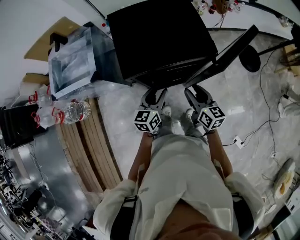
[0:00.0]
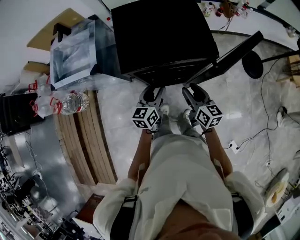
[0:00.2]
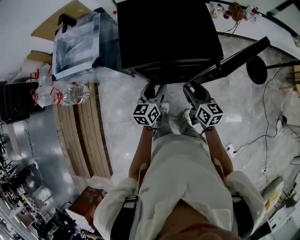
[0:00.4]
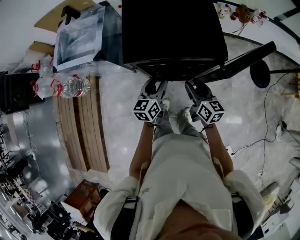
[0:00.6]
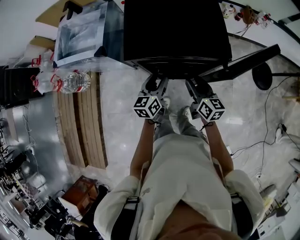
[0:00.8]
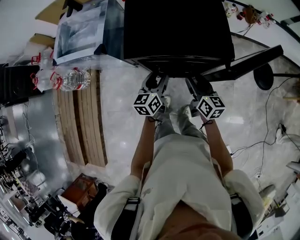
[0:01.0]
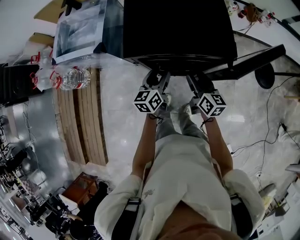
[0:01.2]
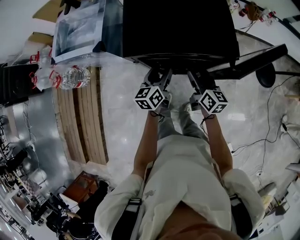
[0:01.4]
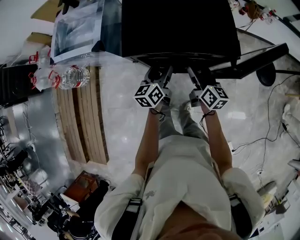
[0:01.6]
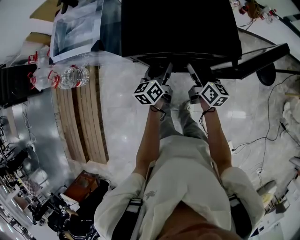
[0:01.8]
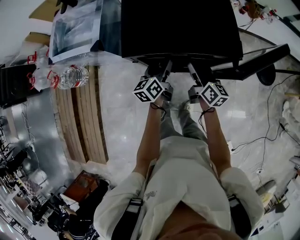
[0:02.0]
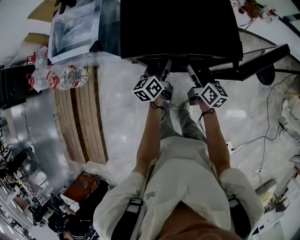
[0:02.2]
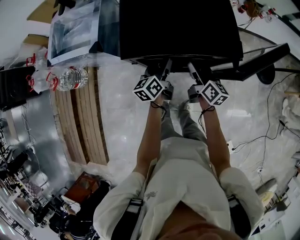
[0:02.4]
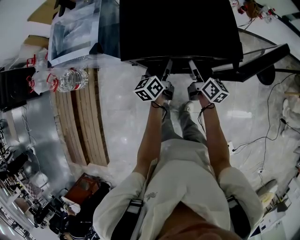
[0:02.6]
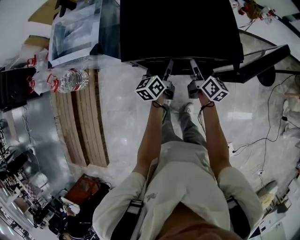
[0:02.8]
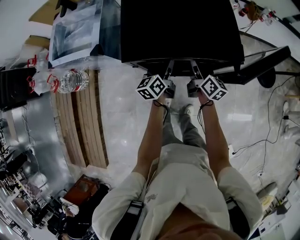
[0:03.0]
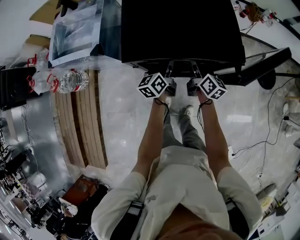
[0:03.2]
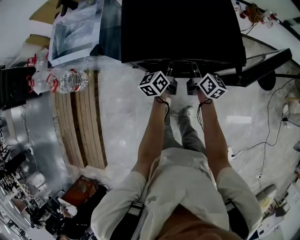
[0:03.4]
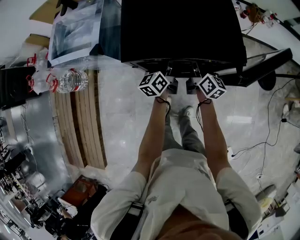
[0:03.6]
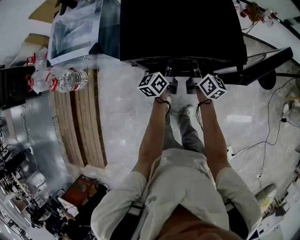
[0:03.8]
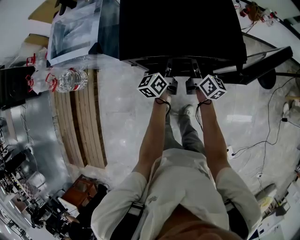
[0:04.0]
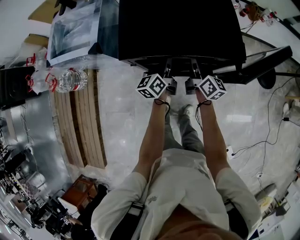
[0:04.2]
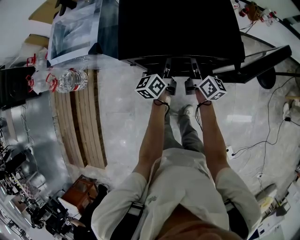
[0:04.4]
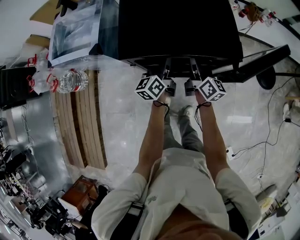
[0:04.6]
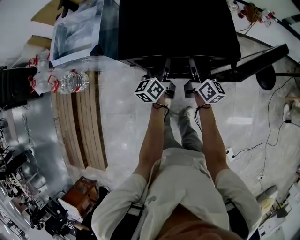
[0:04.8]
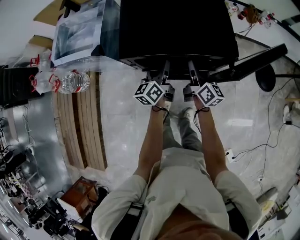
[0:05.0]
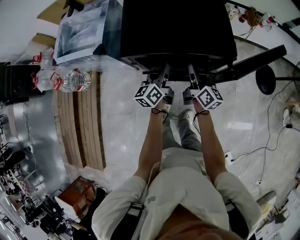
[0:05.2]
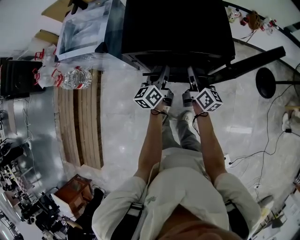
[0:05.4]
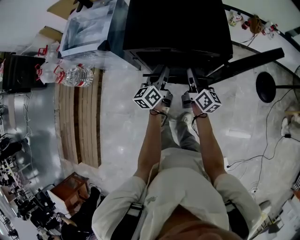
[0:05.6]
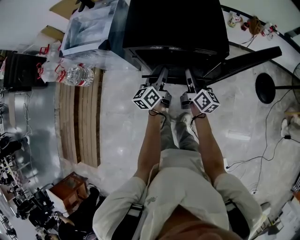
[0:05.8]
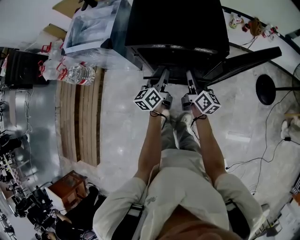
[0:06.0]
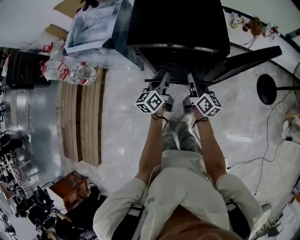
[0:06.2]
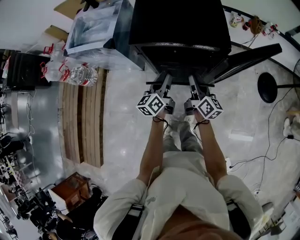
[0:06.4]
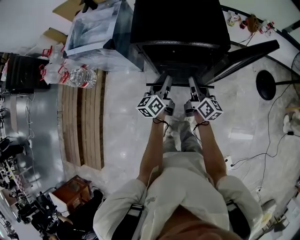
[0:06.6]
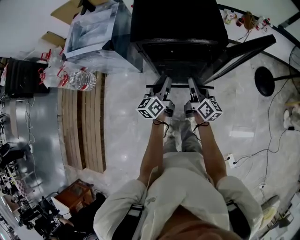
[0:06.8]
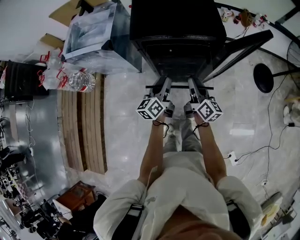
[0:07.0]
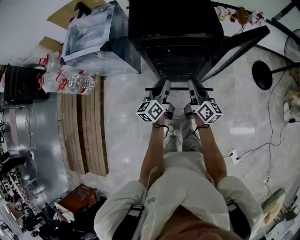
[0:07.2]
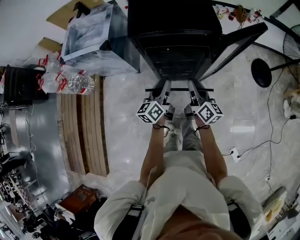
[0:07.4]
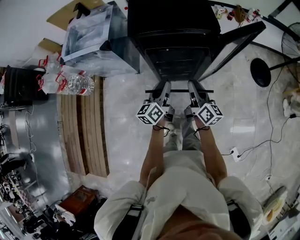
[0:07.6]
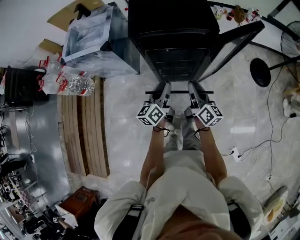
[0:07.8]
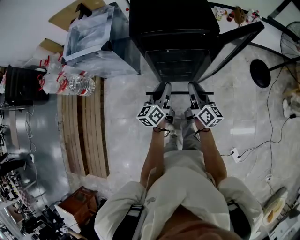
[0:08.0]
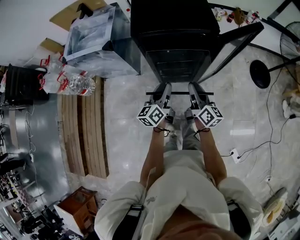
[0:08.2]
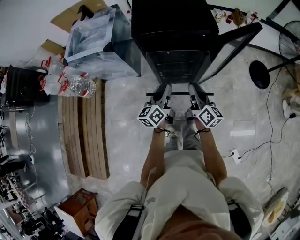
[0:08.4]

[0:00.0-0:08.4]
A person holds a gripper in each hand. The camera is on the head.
0:00.0 to 0:01.4: The left gripper moves downward, some 5 cm, and turns by roughly 20 degrees; the right gripper is displaced forward and downward by approximately 10 cm.
0:01.4 to 0:02.8: Both grippers move forward, roughly 5 cm.
0:02.8 to 0:04.2: The left gripper closes; the right gripper closes.
0:04.2 to 0:05.6: Both grippers travel together backward, roughly 10 cm.
0:05.6 to 0:07.0: The grippers both shift backward by some 10 cm.
0:07.0 to 0:08.4: The grippers both shift backward by about 5 cm.

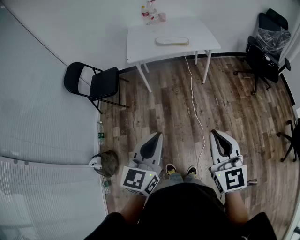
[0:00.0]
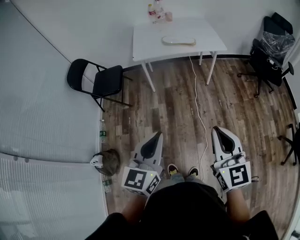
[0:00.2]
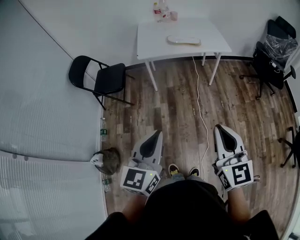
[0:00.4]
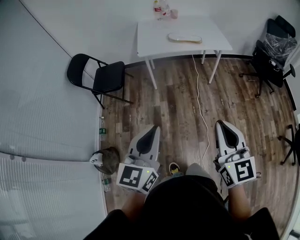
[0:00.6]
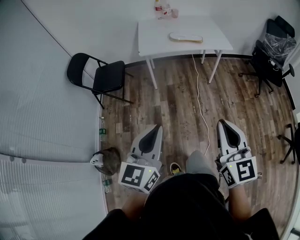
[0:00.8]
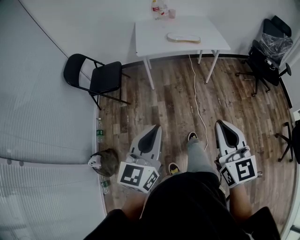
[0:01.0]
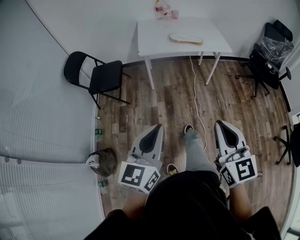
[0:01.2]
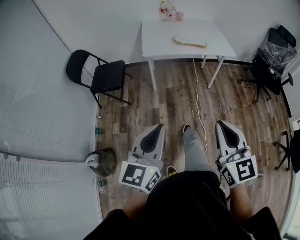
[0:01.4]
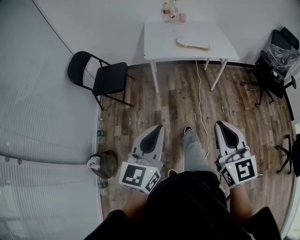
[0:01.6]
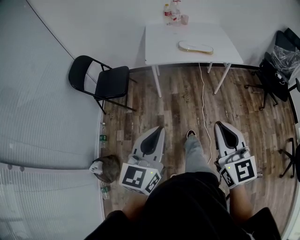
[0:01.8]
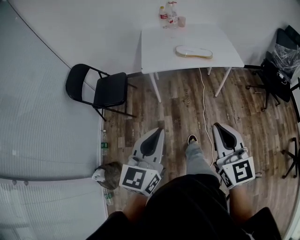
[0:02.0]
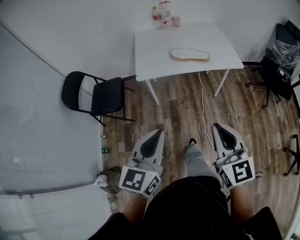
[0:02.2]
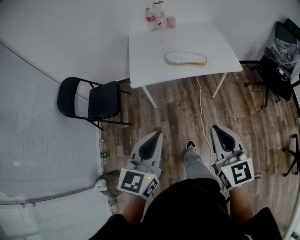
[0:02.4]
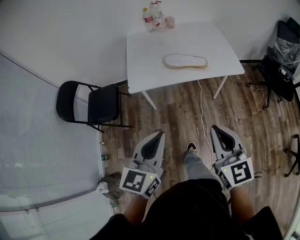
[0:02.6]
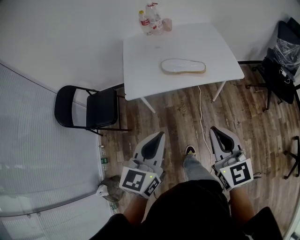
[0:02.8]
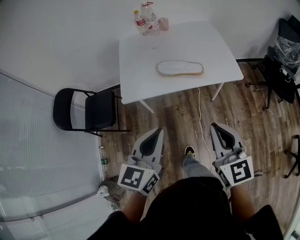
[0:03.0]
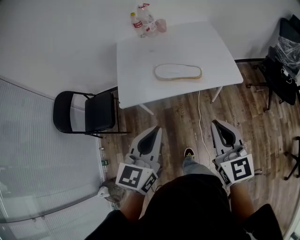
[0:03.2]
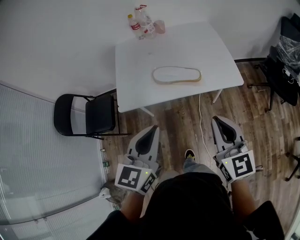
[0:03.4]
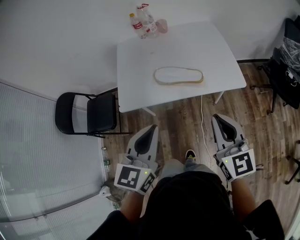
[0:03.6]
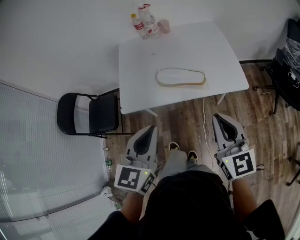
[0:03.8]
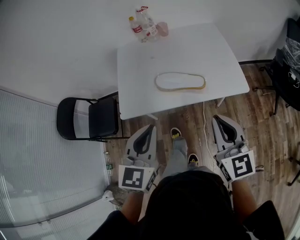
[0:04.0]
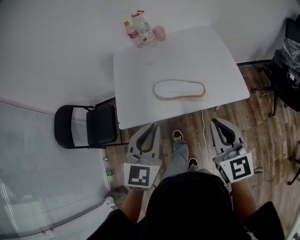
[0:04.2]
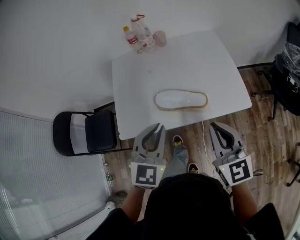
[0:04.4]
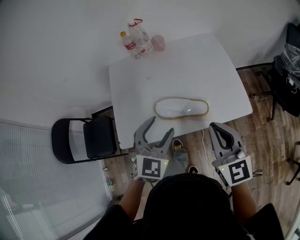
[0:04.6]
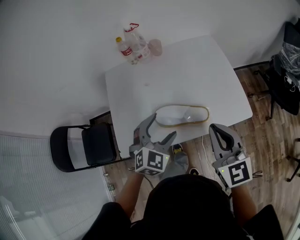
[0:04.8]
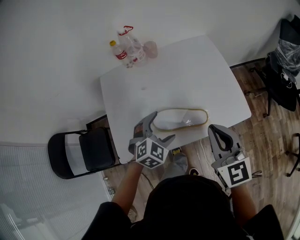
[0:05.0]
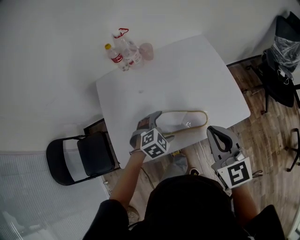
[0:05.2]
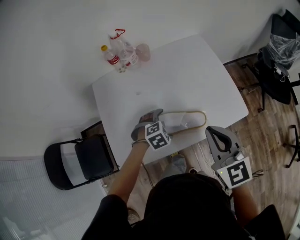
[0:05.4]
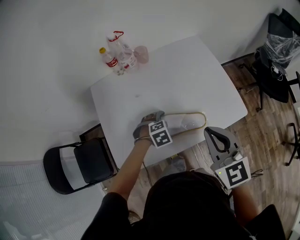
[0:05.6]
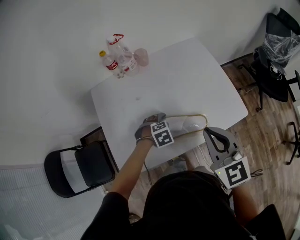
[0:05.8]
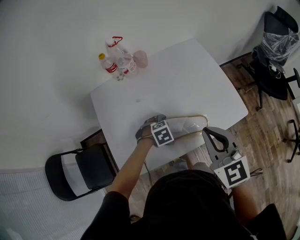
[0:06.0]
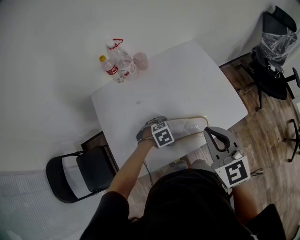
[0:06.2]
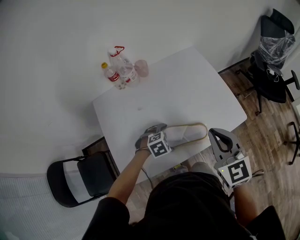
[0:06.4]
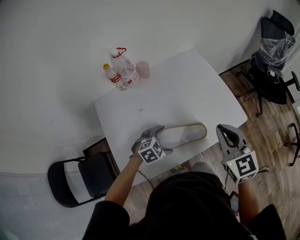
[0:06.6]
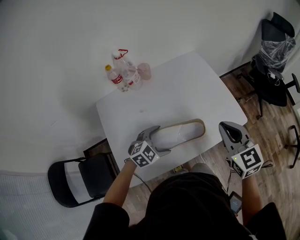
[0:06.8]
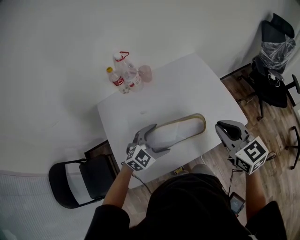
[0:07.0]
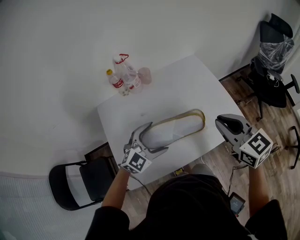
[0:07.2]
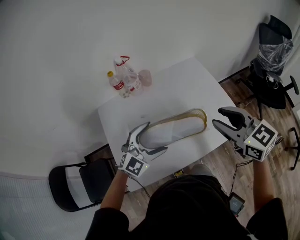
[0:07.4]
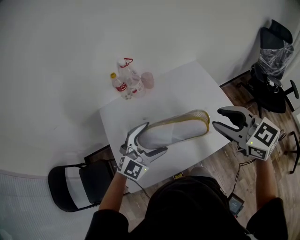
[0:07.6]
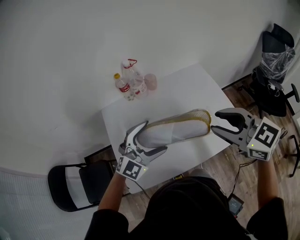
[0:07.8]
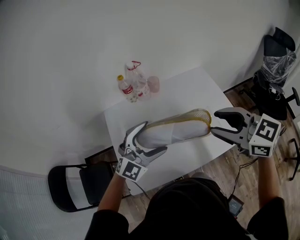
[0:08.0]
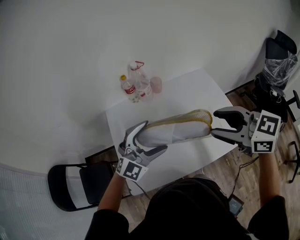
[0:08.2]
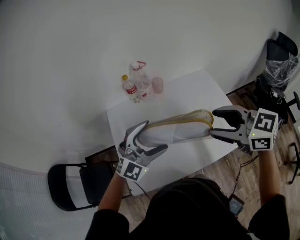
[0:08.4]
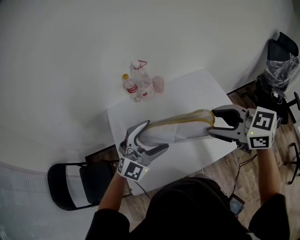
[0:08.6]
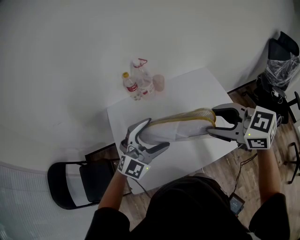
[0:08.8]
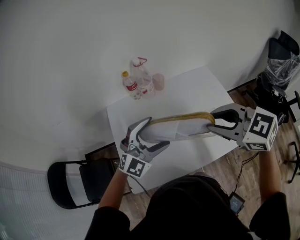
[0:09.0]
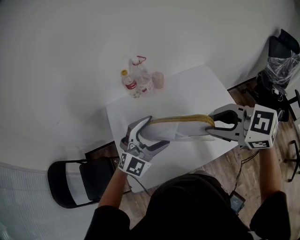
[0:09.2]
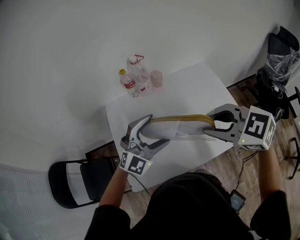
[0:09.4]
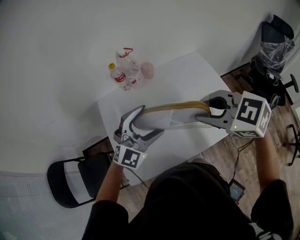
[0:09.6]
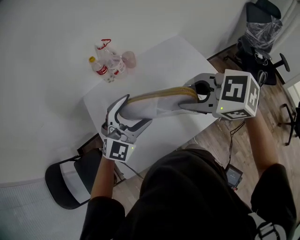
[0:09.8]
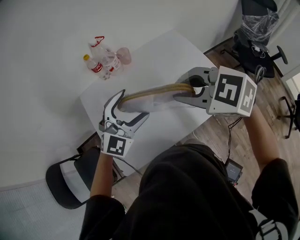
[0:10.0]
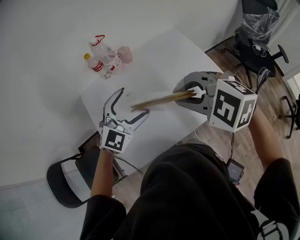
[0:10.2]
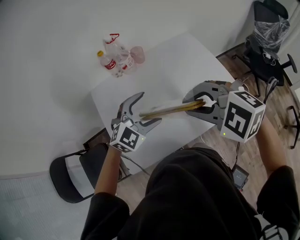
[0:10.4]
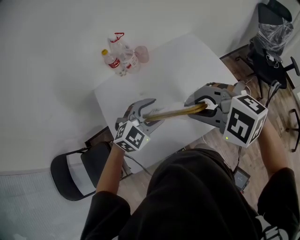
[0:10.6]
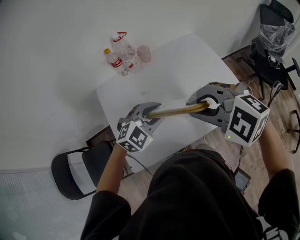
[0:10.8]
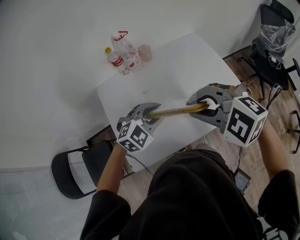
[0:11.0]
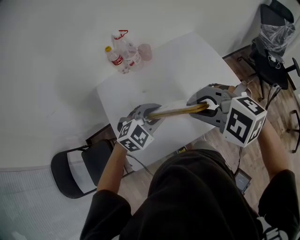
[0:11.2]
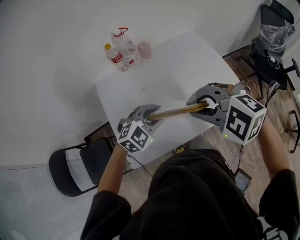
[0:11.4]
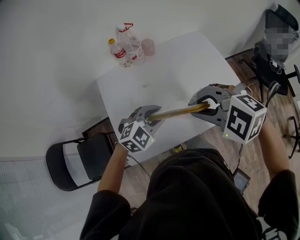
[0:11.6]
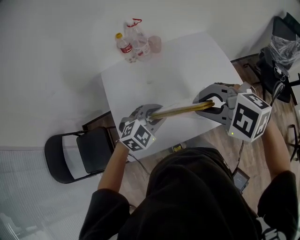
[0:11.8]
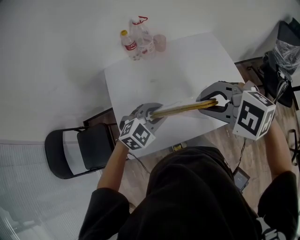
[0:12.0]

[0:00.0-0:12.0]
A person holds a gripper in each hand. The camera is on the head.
0:00.0 to 0:01.6: Both grippers travel together to the left and forward, approximately 15 cm.
0:01.6 to 0:03.0: Both grippers are carried forward, approximately 40 cm.
0:03.0 to 0:04.4: The two grippers go roughly 25 cm forward. The left gripper swivels roughly 30 degrees.
0:04.4 to 0:06.0: The right gripper ends up roughly 15 cm from where it was. Meanwhile the left gripper moves downward, some 30 cm, tips its fingers downward by some 50 degrees, and opens its fingers.
0:06.0 to 0:07.6: The right gripper travels upward by some 10 cm, and opens up, while the left gripper travels upward by some 25 cm, and angles its fingers upward, by about 60 degrees.
0:07.6 to 0:09.0: The right gripper goes roughly 5 cm to the left, and rotates approximately 20 degrees.
0:09.0 to 0:10.4: The left gripper shifts approximately 5 cm downward, and turns by roughly 20 degrees. The right gripper ends up some 5 cm from where it was, and changes its angle by some 30 degrees.
0:10.4 to 0:12.0: The left gripper is displaced backward by about 5 cm, and closes its fingers.

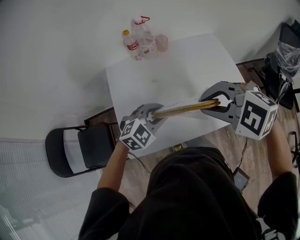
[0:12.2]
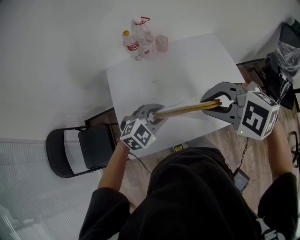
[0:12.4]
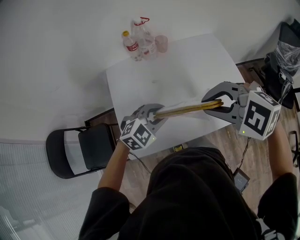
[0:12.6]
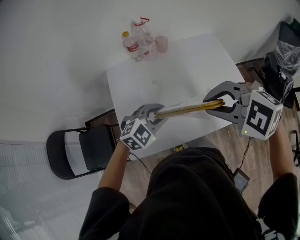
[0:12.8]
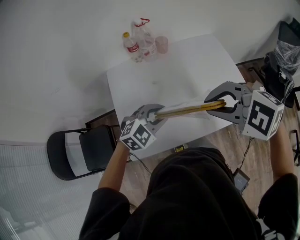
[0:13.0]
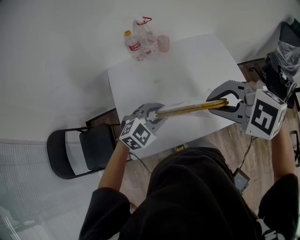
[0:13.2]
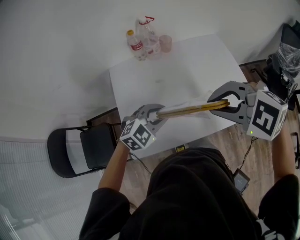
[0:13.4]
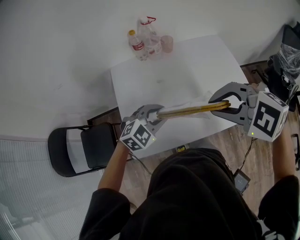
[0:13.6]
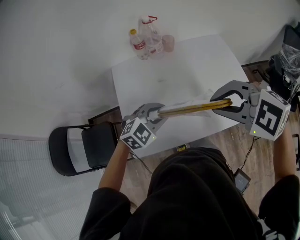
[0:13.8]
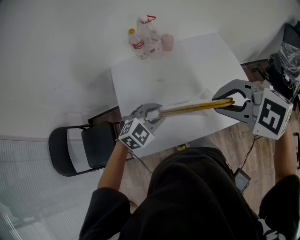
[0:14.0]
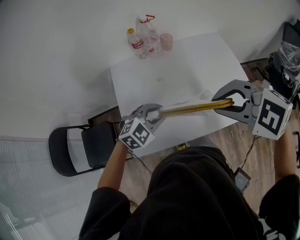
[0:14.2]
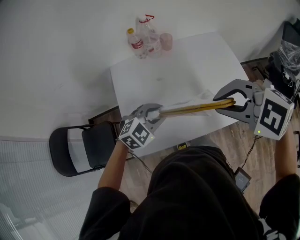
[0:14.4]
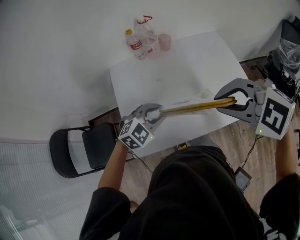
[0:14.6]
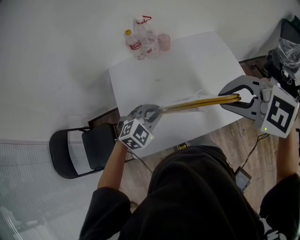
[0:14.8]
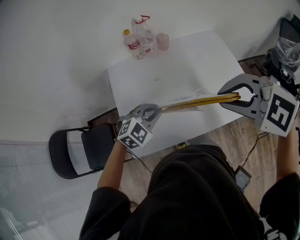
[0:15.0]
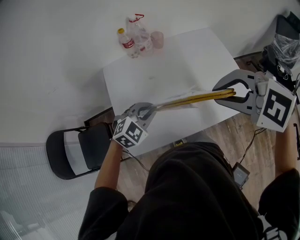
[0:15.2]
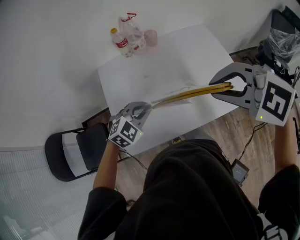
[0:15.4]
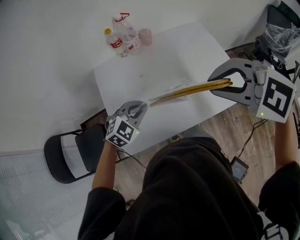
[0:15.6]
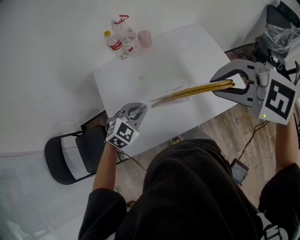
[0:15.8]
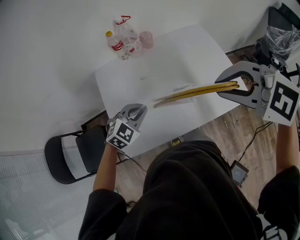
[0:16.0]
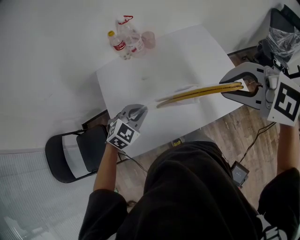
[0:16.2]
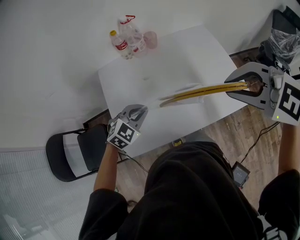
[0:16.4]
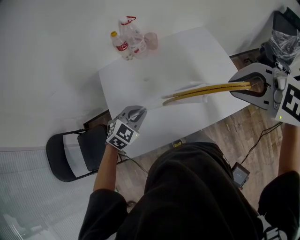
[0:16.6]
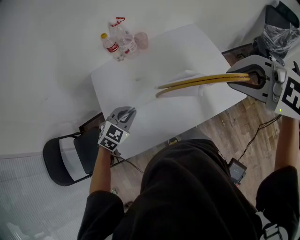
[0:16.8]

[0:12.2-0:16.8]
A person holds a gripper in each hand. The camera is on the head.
0:12.2 to 0:15.2: The grippers move only a little.
0:15.2 to 0:16.8: The right gripper heads to the right, covering approximately 10 cm, and changes its angle by approximately 20 degrees.
